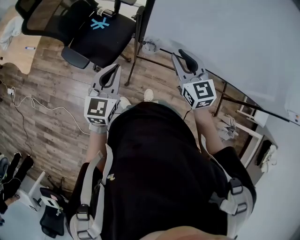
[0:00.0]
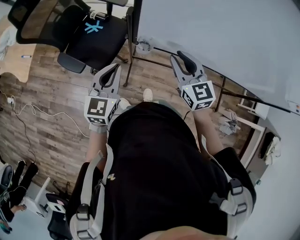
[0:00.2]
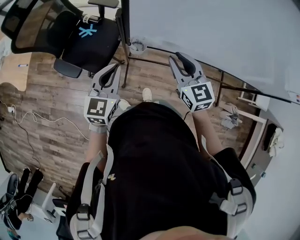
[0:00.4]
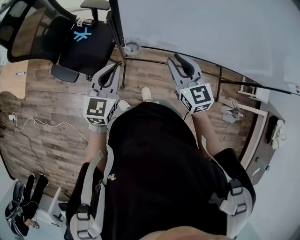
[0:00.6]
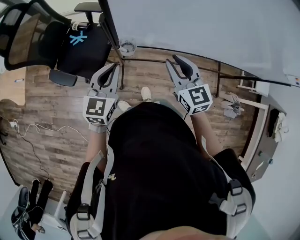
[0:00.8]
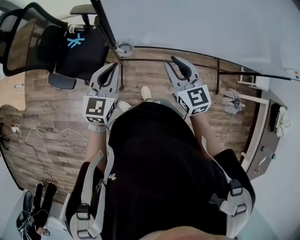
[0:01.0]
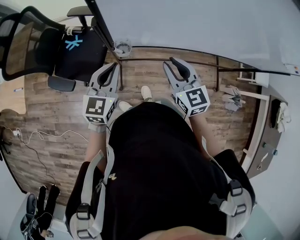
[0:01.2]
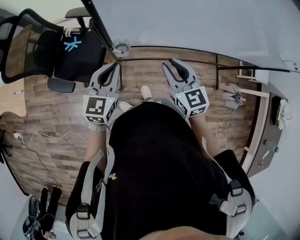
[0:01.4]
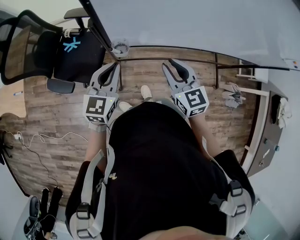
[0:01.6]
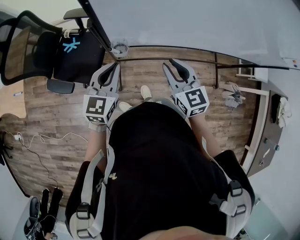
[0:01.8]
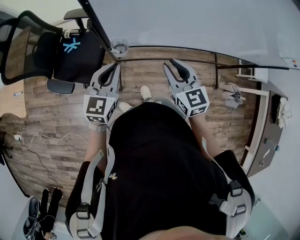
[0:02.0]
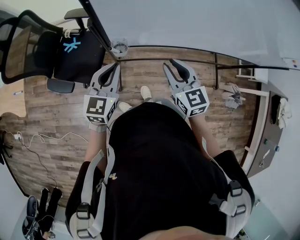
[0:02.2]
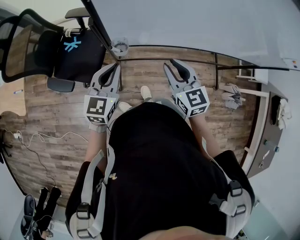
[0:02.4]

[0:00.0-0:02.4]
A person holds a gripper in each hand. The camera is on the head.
0:00.0 to 0:01.2: The left gripper moves to the right, approximately 10 cm, while the right gripper travels to the right and backward by roughly 10 cm.
0:01.2 to 0:02.4: The grippers stay close to where they were, moving slightly.

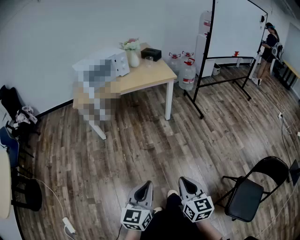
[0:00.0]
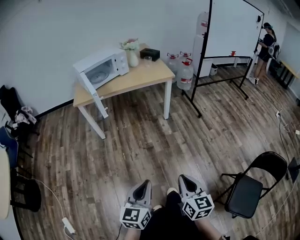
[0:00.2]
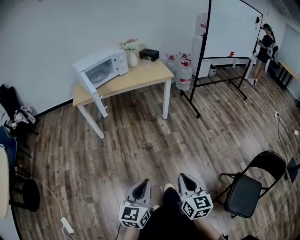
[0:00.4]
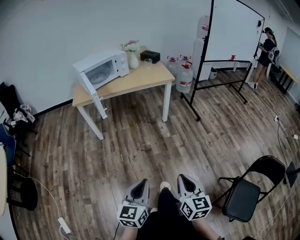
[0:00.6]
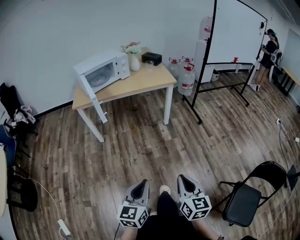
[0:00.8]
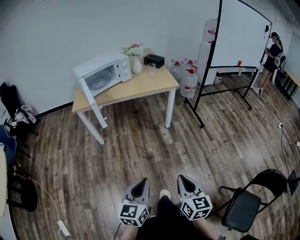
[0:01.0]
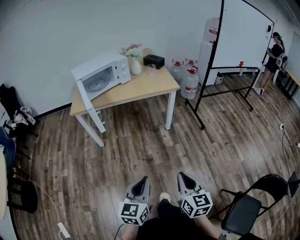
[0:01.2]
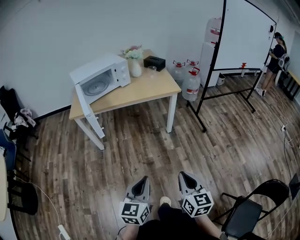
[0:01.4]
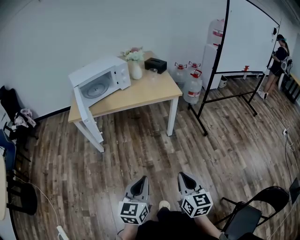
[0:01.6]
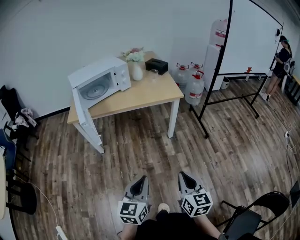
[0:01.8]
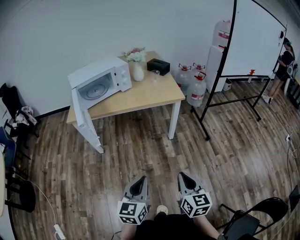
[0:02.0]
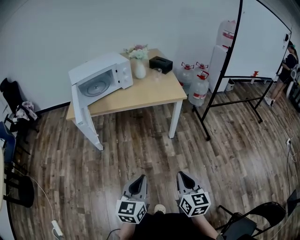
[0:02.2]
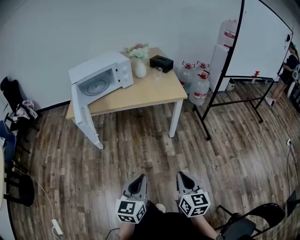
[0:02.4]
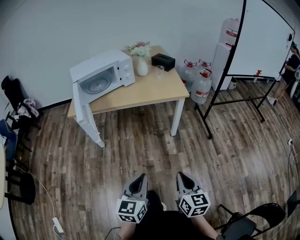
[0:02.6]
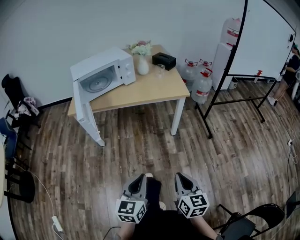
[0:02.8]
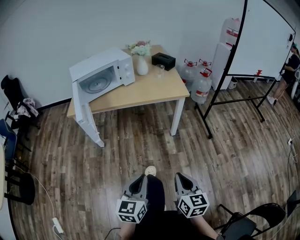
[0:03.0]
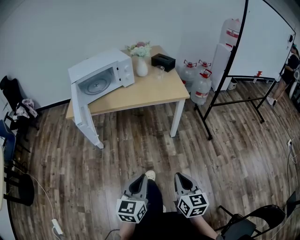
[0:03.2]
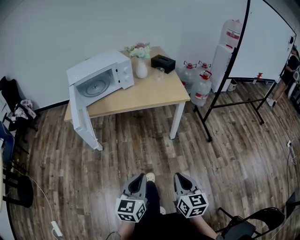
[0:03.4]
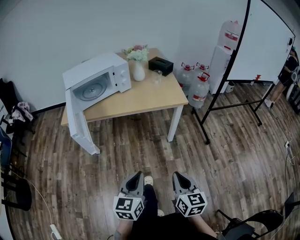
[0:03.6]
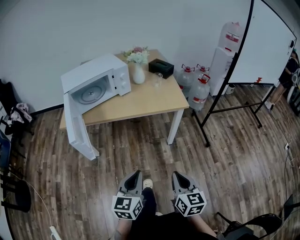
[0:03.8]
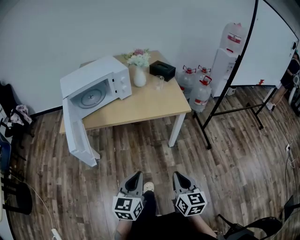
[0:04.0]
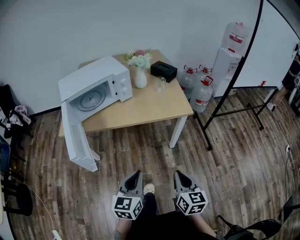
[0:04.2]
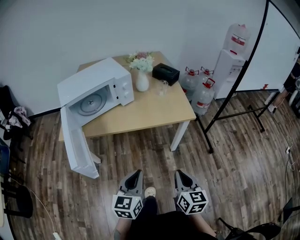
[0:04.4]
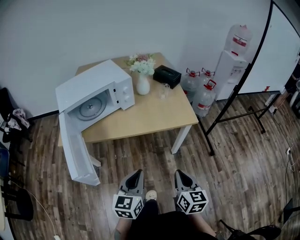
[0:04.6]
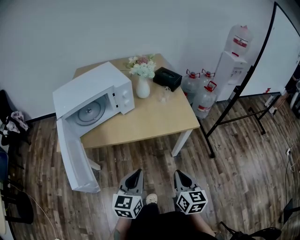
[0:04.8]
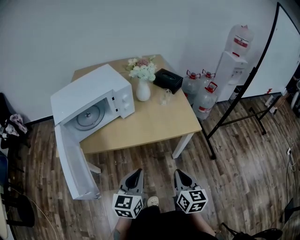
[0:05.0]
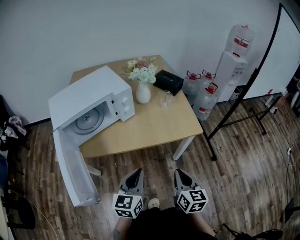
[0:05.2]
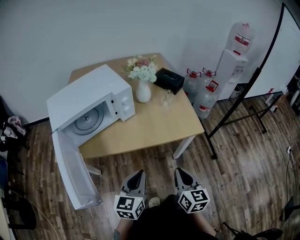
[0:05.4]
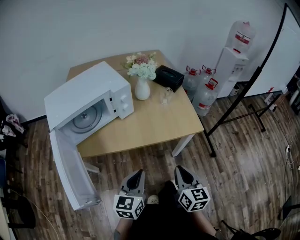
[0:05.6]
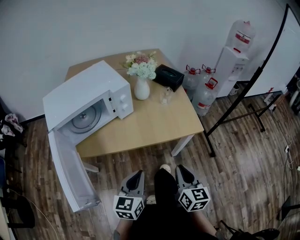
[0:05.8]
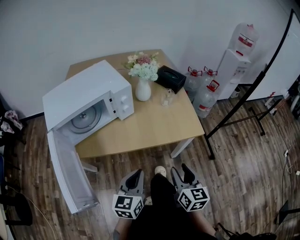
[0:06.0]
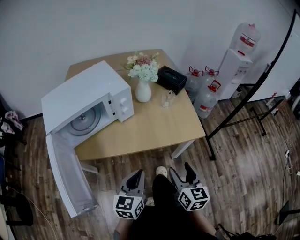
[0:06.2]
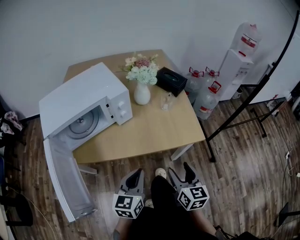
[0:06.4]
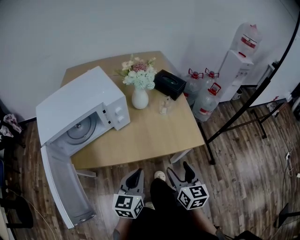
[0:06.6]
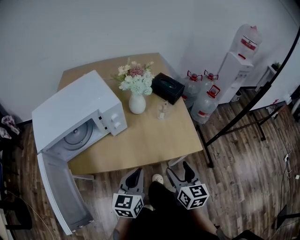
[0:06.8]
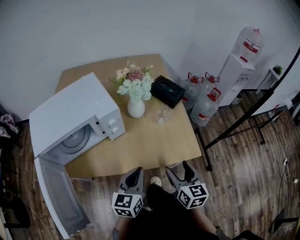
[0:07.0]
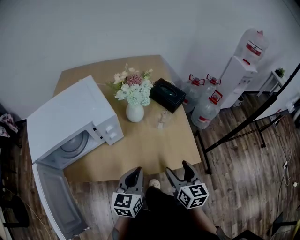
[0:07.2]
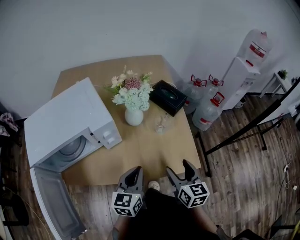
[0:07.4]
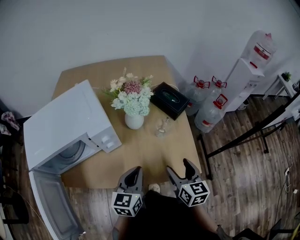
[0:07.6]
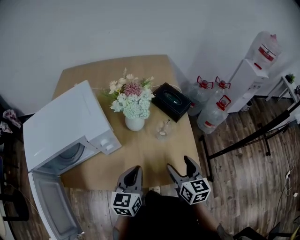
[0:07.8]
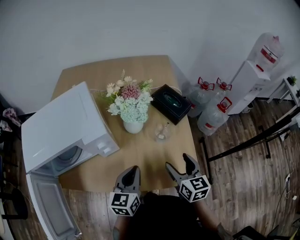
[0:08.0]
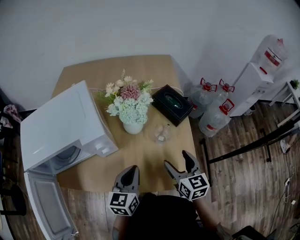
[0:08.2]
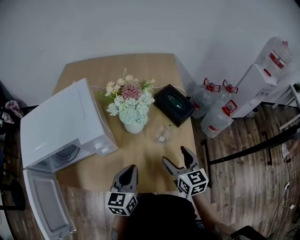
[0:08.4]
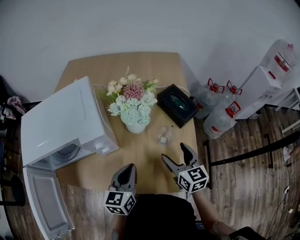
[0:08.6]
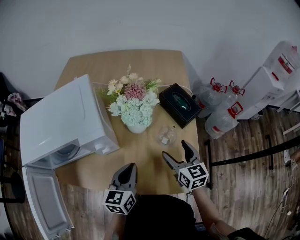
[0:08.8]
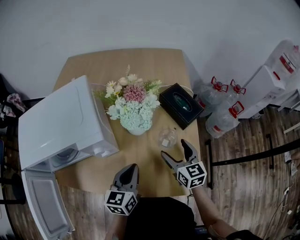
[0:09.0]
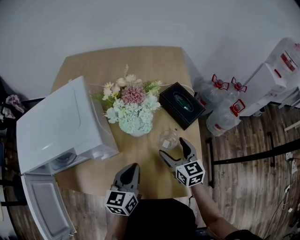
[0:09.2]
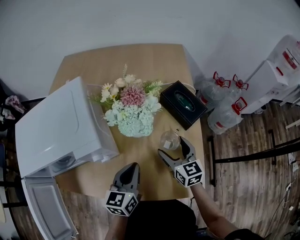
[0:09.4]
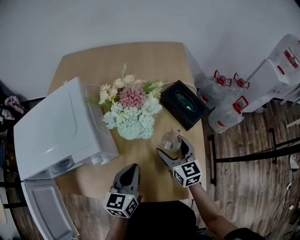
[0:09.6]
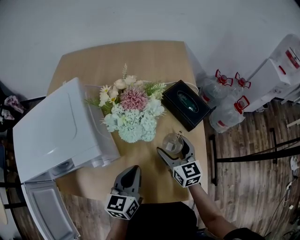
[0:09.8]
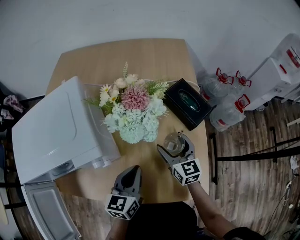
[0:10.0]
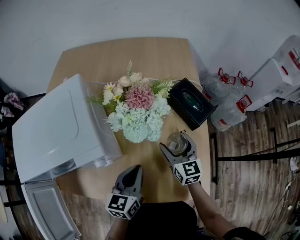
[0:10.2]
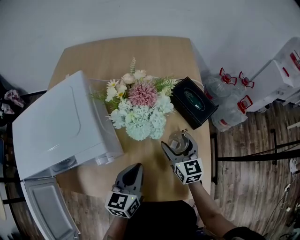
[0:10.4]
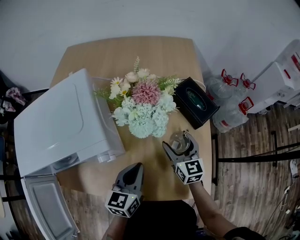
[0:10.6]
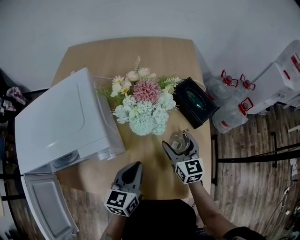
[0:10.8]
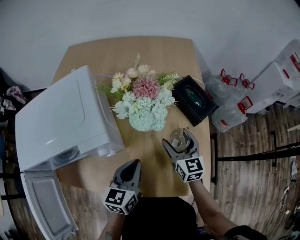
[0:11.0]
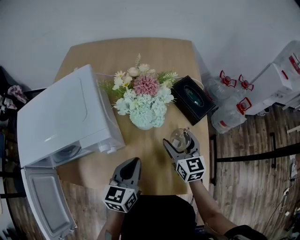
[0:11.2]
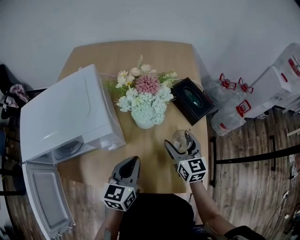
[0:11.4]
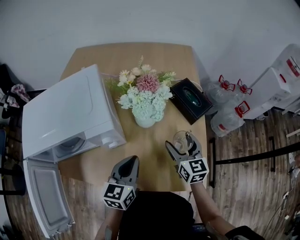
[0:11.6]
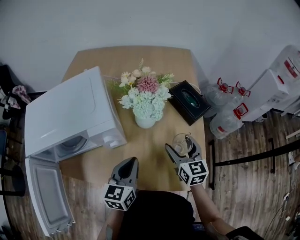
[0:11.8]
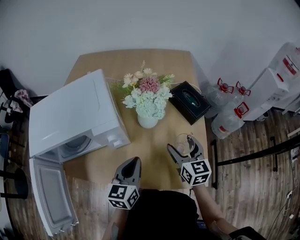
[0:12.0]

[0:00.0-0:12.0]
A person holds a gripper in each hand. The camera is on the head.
0:00.0 to 0:01.6: Both grippers move forward, about 20 cm.
0:01.6 to 0:03.0: Both grippers move forward, approximately 5 cm.
0:03.0 to 0:04.4: Both grippers travel together forward, some 25 cm.
0:04.4 to 0:06.0: The two grippers go roughly 15 cm forward. The right gripper opens.
0:06.0 to 0:07.6: The two grippers go roughly 25 cm forward. The right gripper opens its fingers.
0:07.6 to 0:09.0: The left gripper moves forward, about 10 cm. Meanwhile the right gripper goes approximately 15 cm forward.
0:09.0 to 0:10.4: The right gripper travels forward by roughly 5 cm.
0:10.4 to 0:12.0: The left gripper is displaced backward by about 5 cm. The right gripper shifts approximately 10 cm backward and upward.

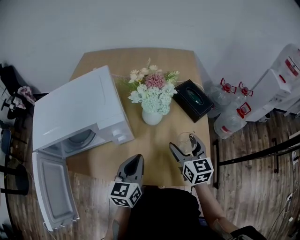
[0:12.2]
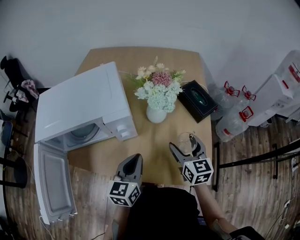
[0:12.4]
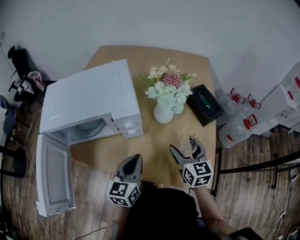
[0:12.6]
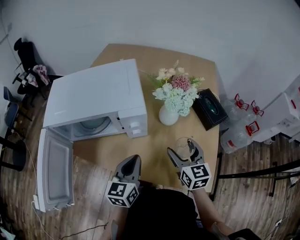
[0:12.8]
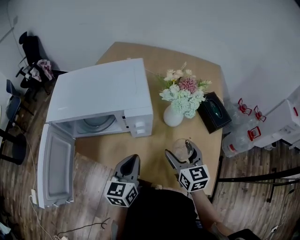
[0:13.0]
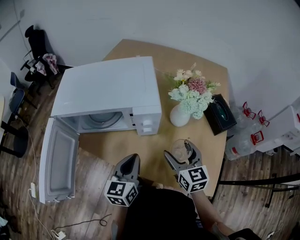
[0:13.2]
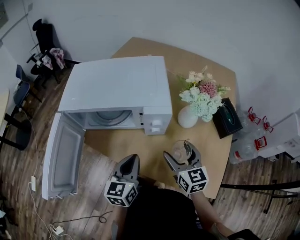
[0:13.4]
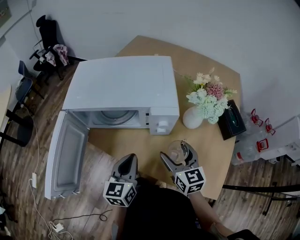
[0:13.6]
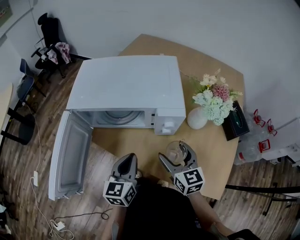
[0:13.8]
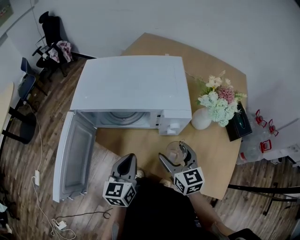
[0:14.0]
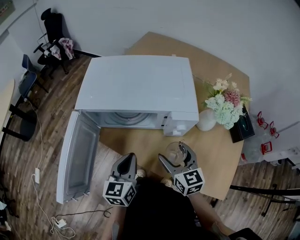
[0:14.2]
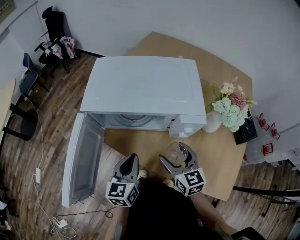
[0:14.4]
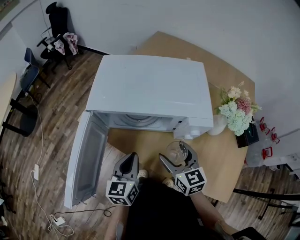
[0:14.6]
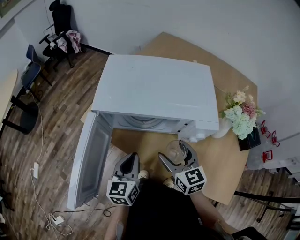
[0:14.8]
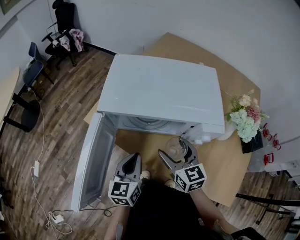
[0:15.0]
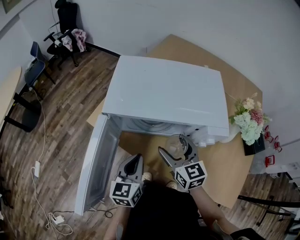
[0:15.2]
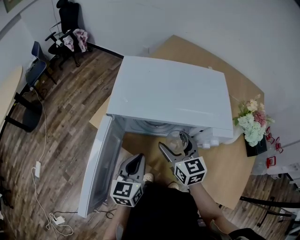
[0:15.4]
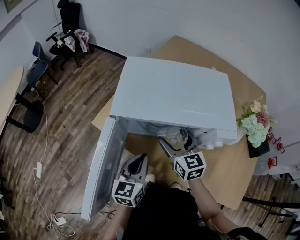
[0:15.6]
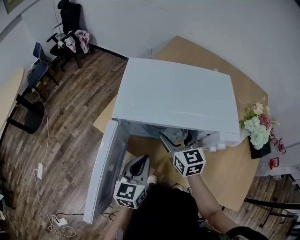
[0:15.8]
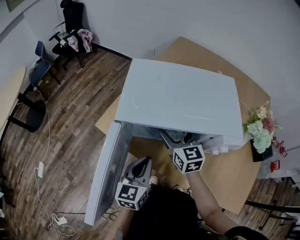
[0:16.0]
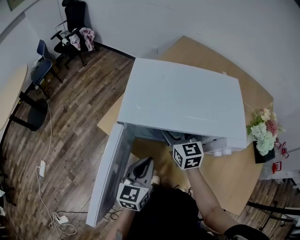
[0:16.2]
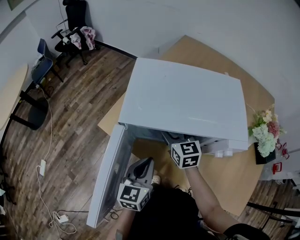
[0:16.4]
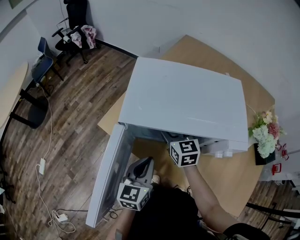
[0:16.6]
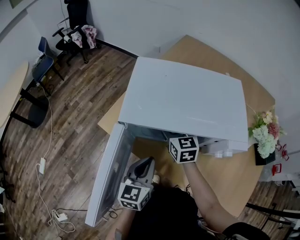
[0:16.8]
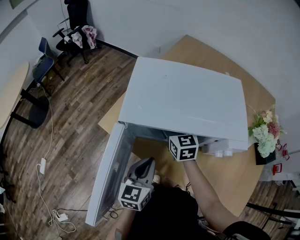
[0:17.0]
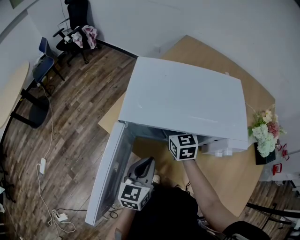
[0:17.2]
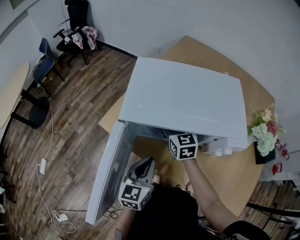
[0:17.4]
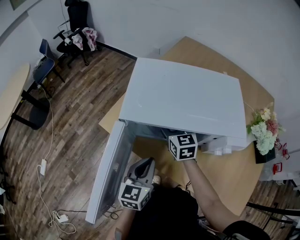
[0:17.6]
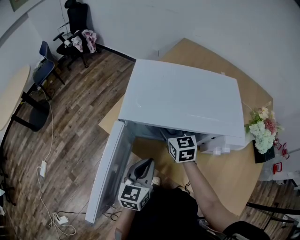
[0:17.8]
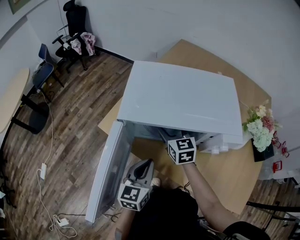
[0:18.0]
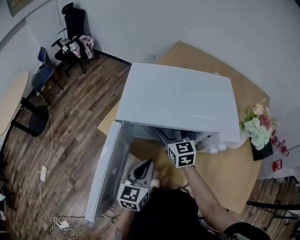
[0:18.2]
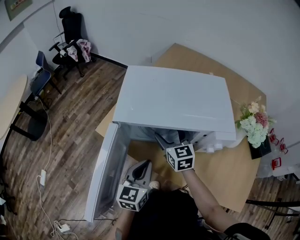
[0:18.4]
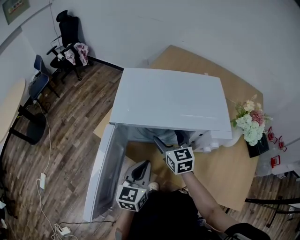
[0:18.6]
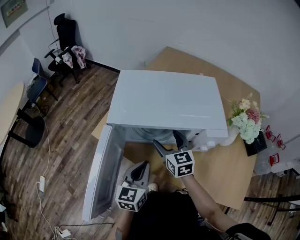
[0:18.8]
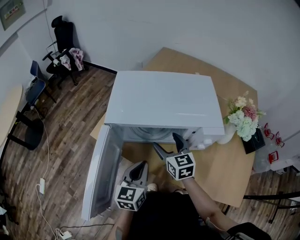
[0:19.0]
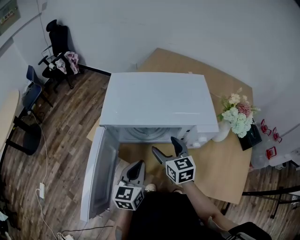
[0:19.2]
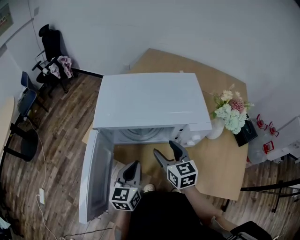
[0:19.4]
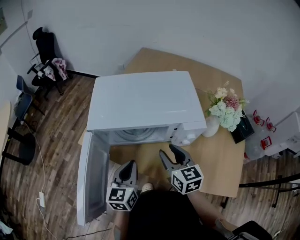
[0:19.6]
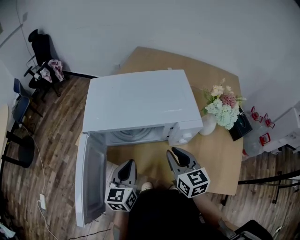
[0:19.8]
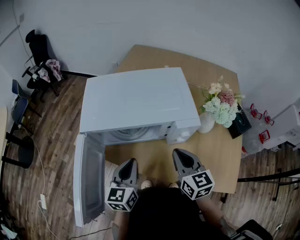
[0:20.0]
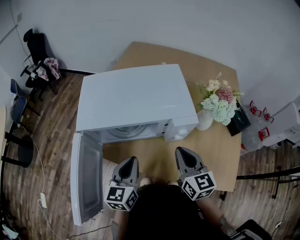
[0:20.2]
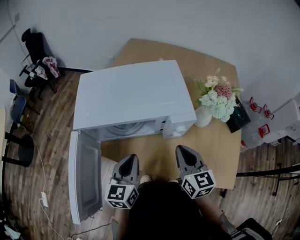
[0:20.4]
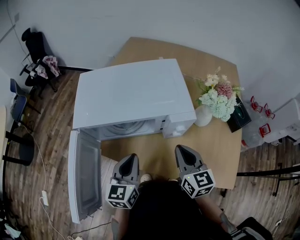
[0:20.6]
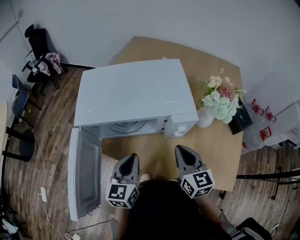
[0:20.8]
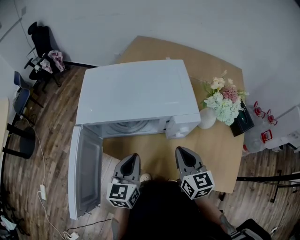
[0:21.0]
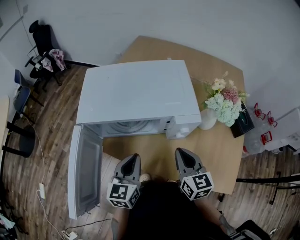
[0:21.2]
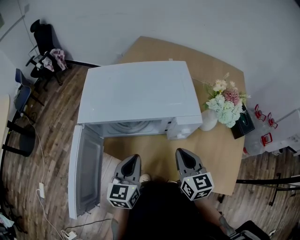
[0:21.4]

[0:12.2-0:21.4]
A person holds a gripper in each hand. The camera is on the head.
0:12.2 to 0:13.8: The right gripper shifts by roughly 25 cm, and rotates roughly 30 degrees. Meanwhile the left gripper moves roughly 20 cm, and swivels some 20 degrees.
0:13.8 to 0:15.2: The grippers both shift to the left and forward by some 15 cm.
0:15.2 to 0:16.8: The right gripper shifts roughly 15 cm forward and to the left.
0:16.8 to 0:18.4: The right gripper is displaced backward by about 5 cm.
0:18.4 to 0:19.8: The right gripper travels to the right, backward and upward by some 20 cm, and closes.
0:19.8 to 0:21.4: The right gripper changes place by roughly 5 cm.
